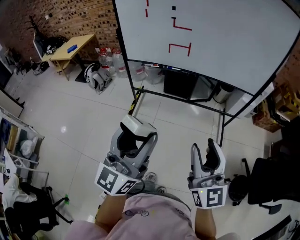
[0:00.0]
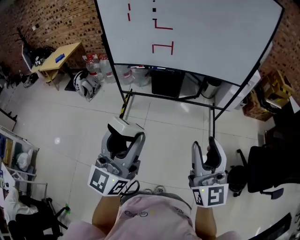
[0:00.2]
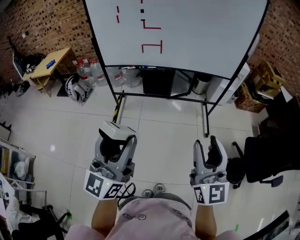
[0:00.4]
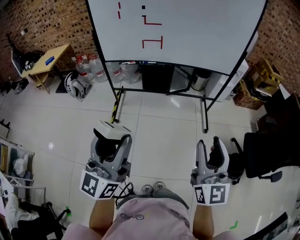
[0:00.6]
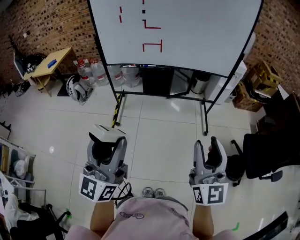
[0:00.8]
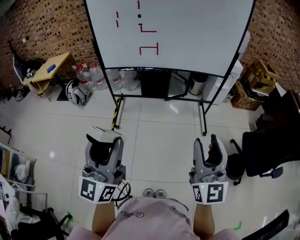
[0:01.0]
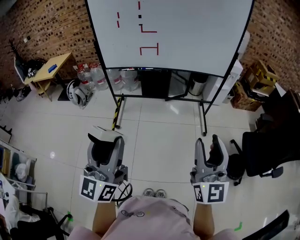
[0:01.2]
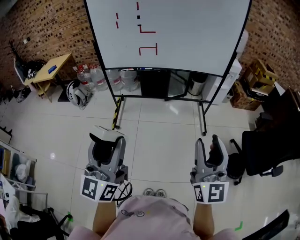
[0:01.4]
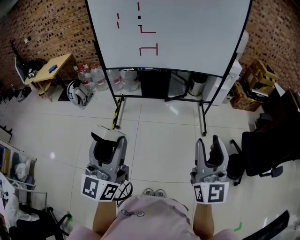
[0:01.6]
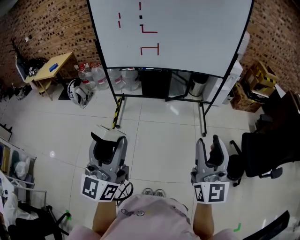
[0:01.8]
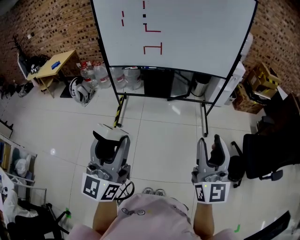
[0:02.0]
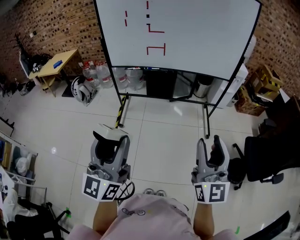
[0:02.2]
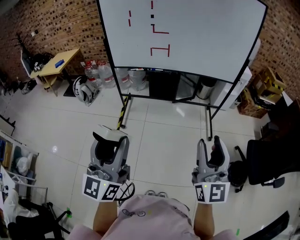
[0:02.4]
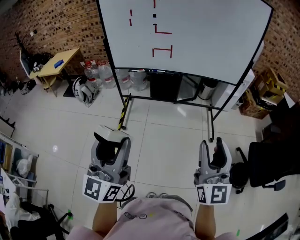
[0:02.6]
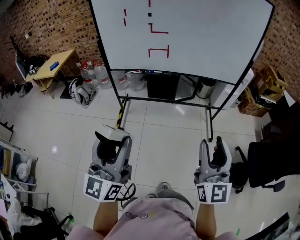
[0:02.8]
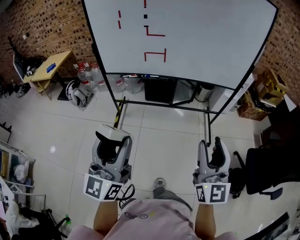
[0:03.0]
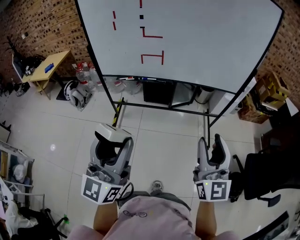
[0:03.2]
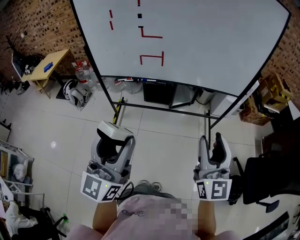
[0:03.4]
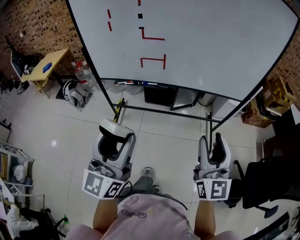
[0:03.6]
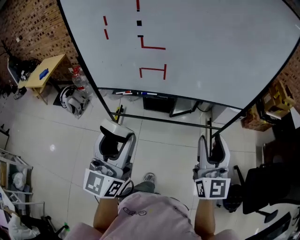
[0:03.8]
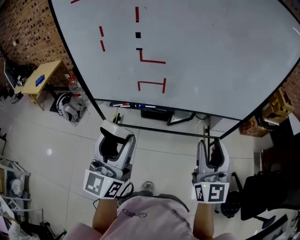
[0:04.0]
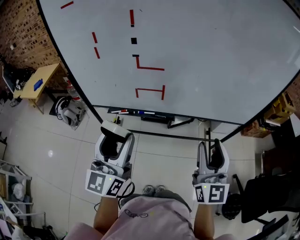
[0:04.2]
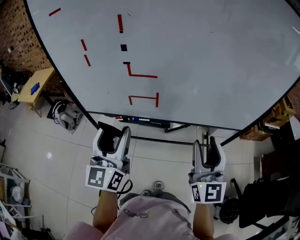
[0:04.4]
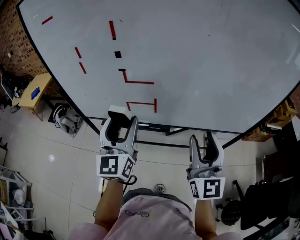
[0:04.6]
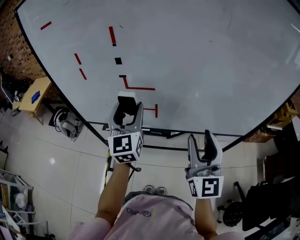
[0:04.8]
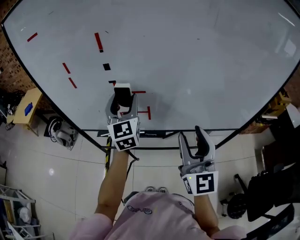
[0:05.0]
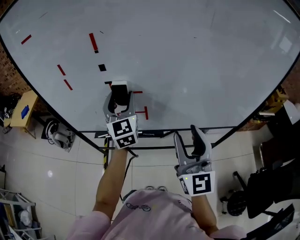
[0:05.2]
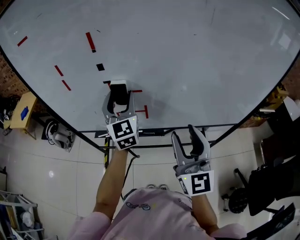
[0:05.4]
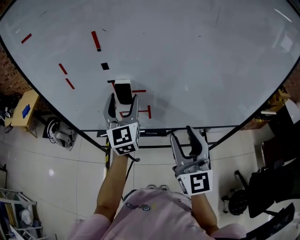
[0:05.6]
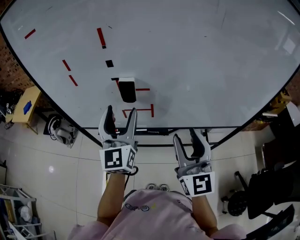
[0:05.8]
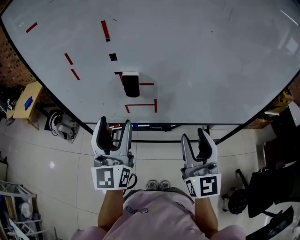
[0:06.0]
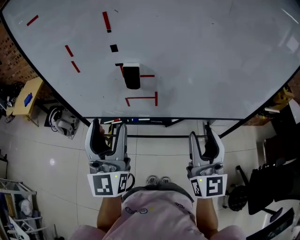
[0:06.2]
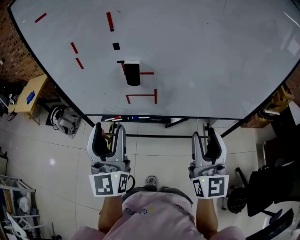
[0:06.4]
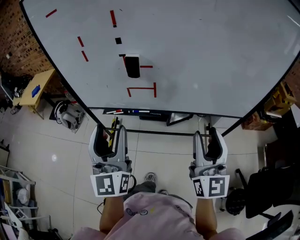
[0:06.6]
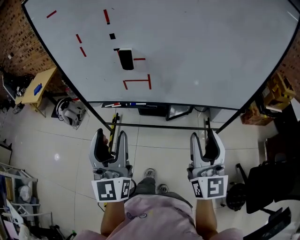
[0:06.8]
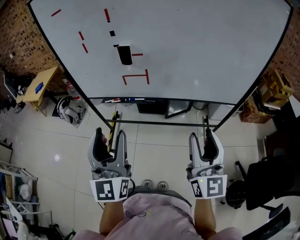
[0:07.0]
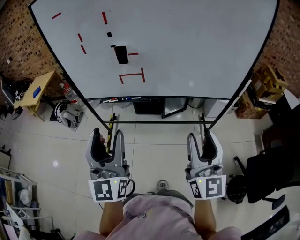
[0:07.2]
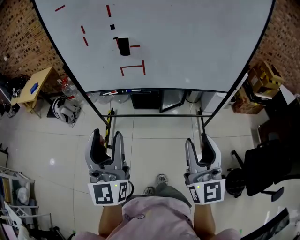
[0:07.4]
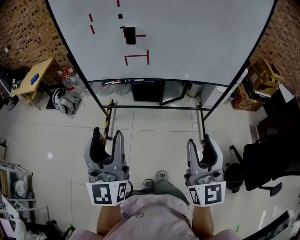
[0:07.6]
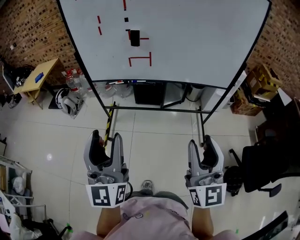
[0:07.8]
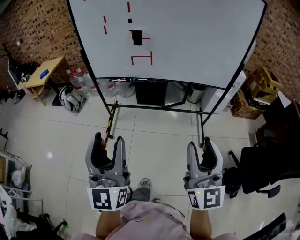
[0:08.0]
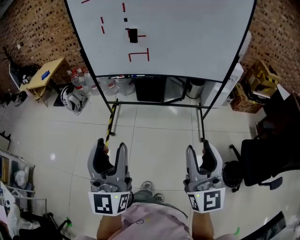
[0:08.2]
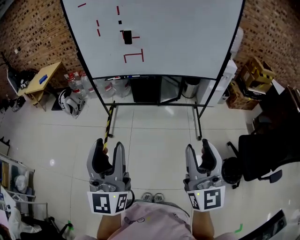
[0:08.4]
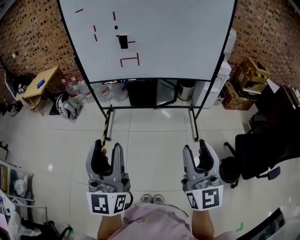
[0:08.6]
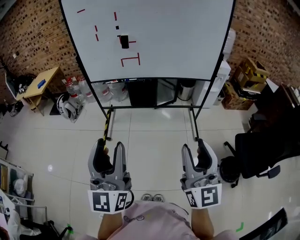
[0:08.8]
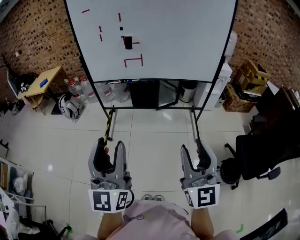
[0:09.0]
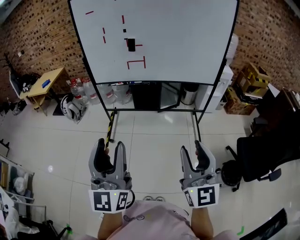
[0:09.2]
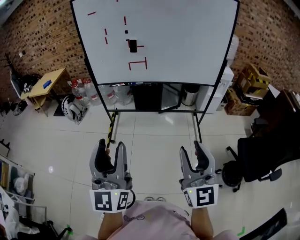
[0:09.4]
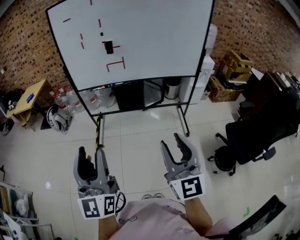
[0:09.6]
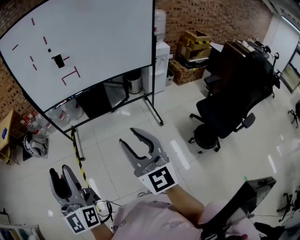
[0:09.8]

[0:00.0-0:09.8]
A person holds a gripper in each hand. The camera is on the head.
0.0 to 1.4 s: The right gripper goes approximately 20 cm backward and to the right. Meanwhile the left gripper travels backward by some 15 cm.
1.4 to 2.8 s: The grippers both shift forward by about 10 cm.
2.8 to 4.2 s: The two grippers travel together, forward, about 40 cm.
4.2 to 5.6 s: The right gripper travels forward by roughly 15 cm; the left gripper is displaced forward by roughly 25 cm, and rotates approximately 20 degrees.
5.6 to 7.0 s: The left gripper moves backward, approximately 40 cm; the right gripper shifts roughly 20 cm backward.
7.0 to 8.4 s: The two grippers go about 35 cm backward.
8.4 to 9.8 s: Both grippers travel together to the left, about 5 cm.

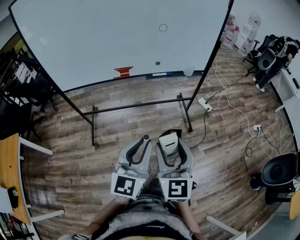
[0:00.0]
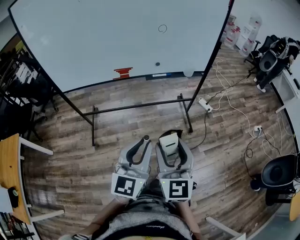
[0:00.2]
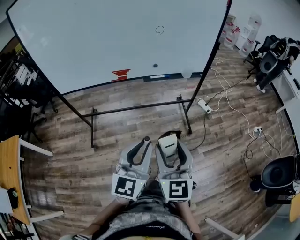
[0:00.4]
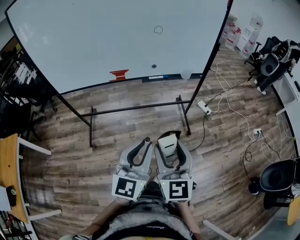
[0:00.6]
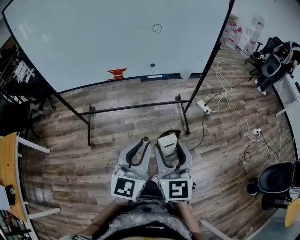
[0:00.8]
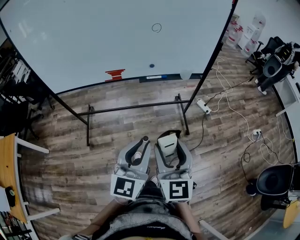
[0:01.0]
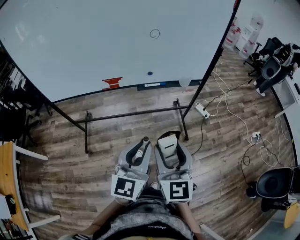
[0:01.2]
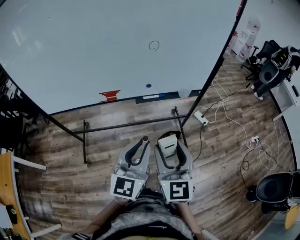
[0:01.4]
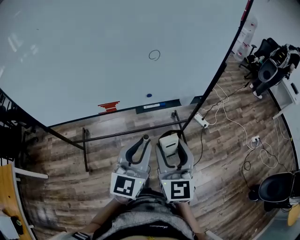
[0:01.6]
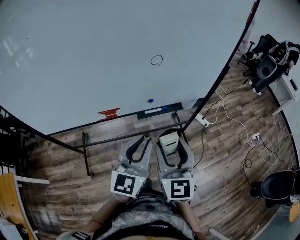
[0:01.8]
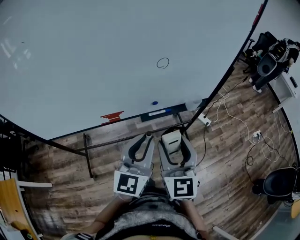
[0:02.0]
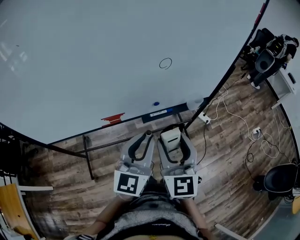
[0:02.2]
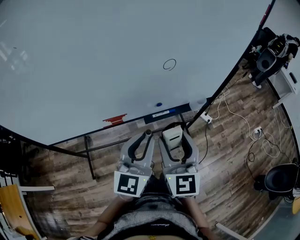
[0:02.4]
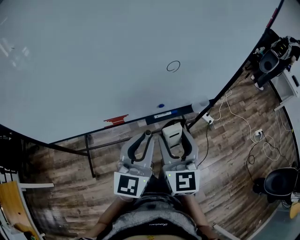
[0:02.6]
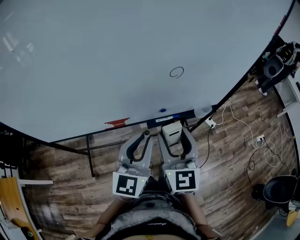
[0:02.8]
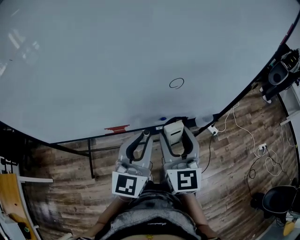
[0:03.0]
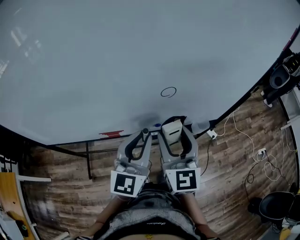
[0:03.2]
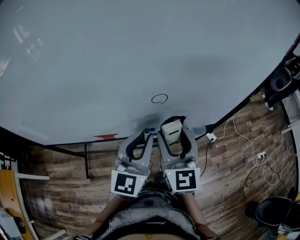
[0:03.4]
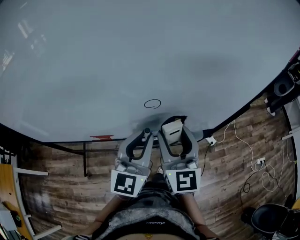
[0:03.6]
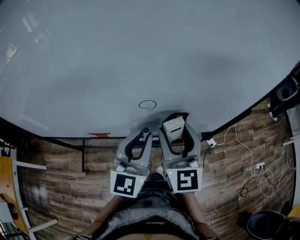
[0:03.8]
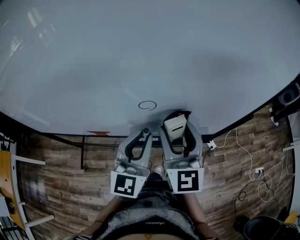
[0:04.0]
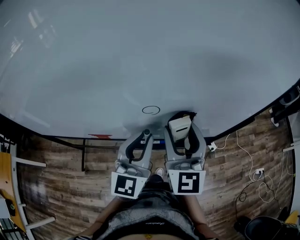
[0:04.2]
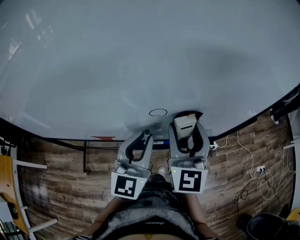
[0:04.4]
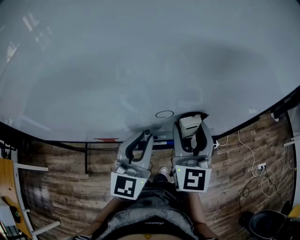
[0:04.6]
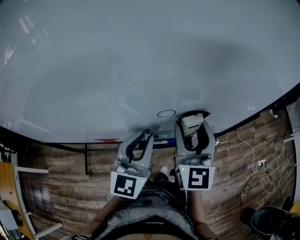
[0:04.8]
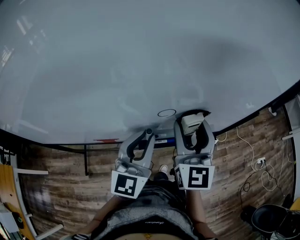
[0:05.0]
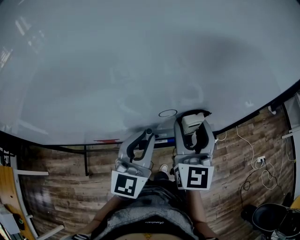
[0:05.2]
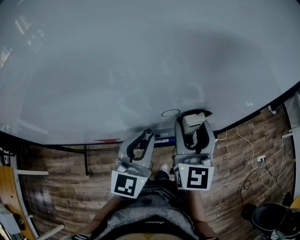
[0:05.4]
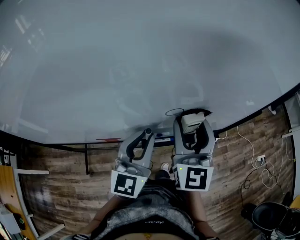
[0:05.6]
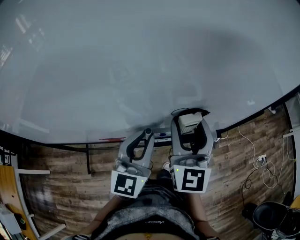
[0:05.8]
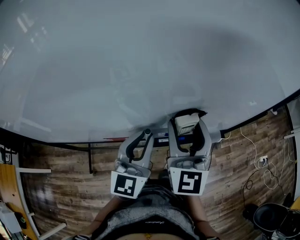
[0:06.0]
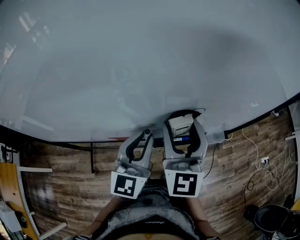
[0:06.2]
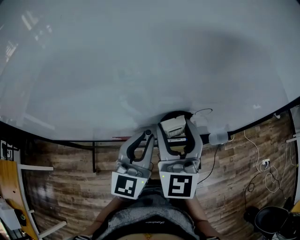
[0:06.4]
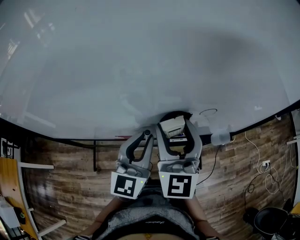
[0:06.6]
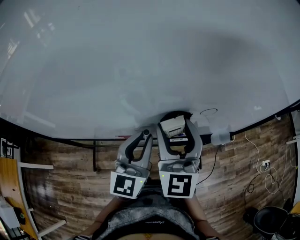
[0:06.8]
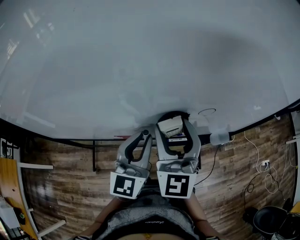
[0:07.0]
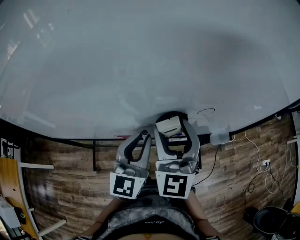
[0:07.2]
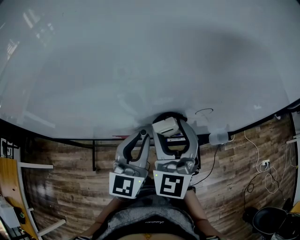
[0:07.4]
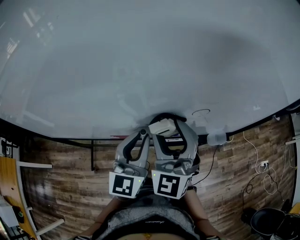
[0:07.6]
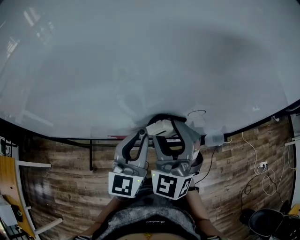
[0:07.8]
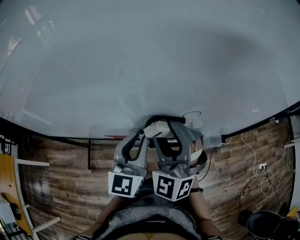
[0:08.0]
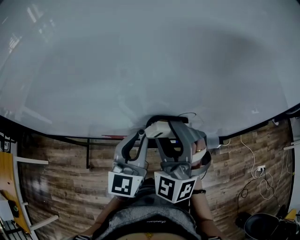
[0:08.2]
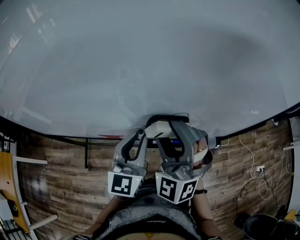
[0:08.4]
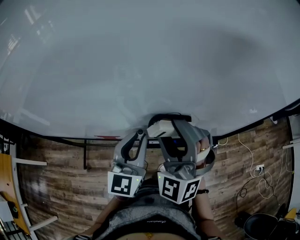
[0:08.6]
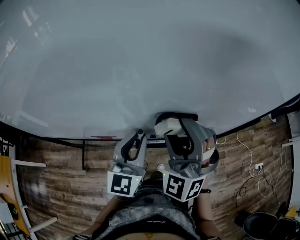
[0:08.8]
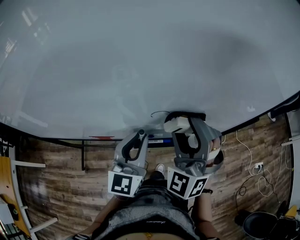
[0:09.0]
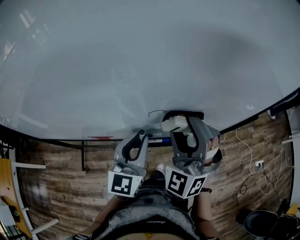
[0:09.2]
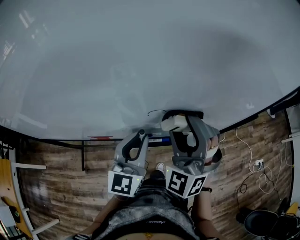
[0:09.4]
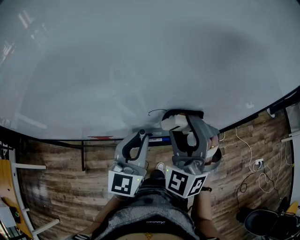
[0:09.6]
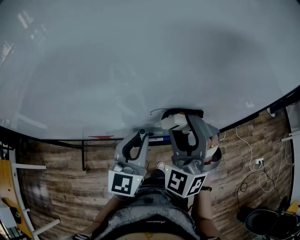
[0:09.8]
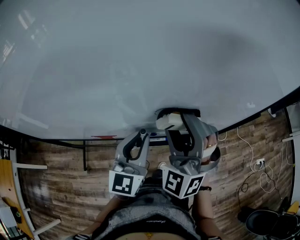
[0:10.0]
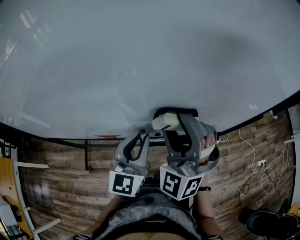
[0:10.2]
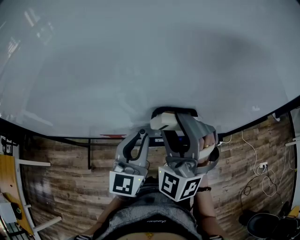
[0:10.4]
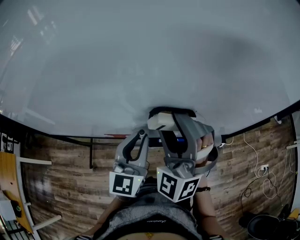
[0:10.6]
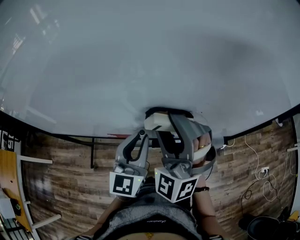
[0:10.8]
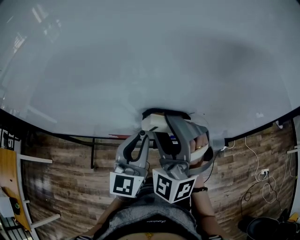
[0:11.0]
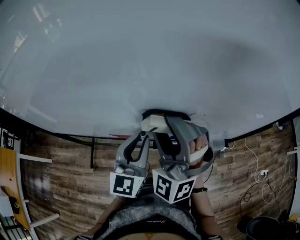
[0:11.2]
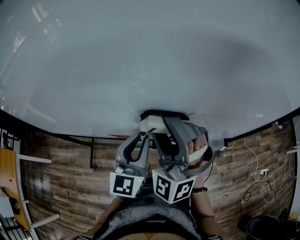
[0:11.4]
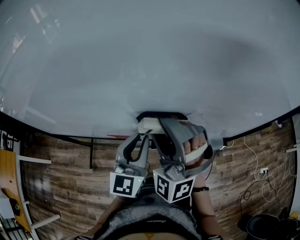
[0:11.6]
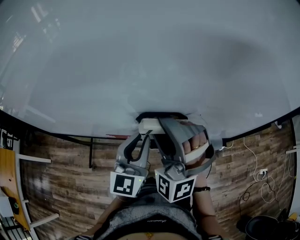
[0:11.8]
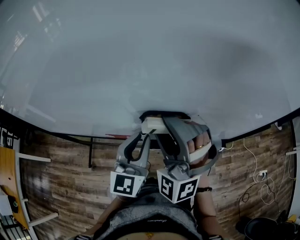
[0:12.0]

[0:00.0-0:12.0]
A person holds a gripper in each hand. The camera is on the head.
0.0 to 1.6 s: The grippers both shift forward by approximately 25 cm.
1.6 to 3.0 s: The left gripper shifts approximately 20 cm forward and to the left. Meanwhile the right gripper heads forward, covering approximately 20 cm.
3.0 to 4.4 s: Both grippers move forward and to the right, some 15 cm.
4.4 to 6.0 s: The two grippers go approximately 10 cm to the left.
6.0 to 7.6 s: The right gripper moves to the left, roughly 10 cm, and changes its angle by roughly 20 degrees.
7.6 to 9.0 s: Both grippers move to the right, approximately 10 cm. The right gripper swivels approximately 30 degrees.
9.0 to 10.4 s: The right gripper travels to the left by about 5 cm.
10.4 to 12.0 s: The right gripper travels to the left by approximately 5 cm.

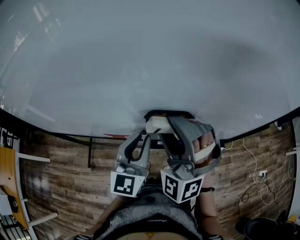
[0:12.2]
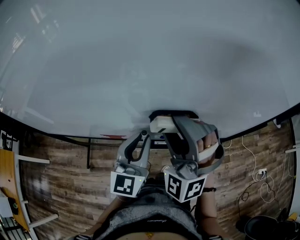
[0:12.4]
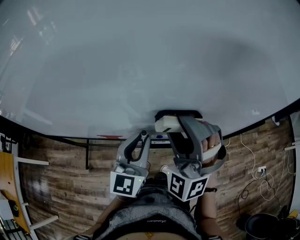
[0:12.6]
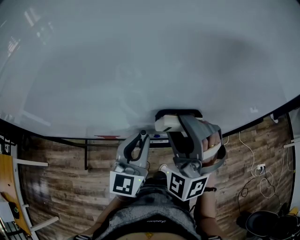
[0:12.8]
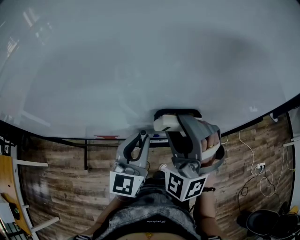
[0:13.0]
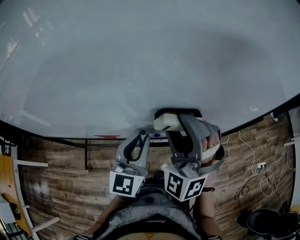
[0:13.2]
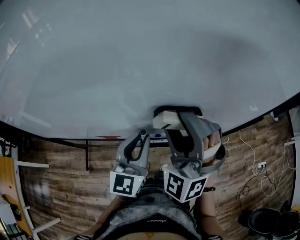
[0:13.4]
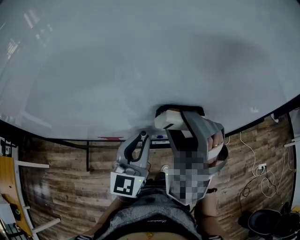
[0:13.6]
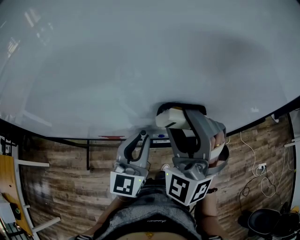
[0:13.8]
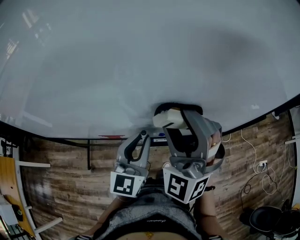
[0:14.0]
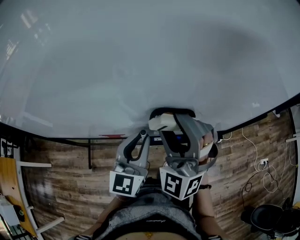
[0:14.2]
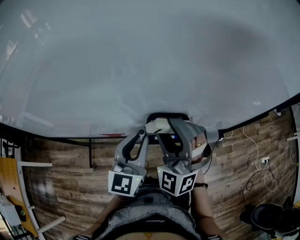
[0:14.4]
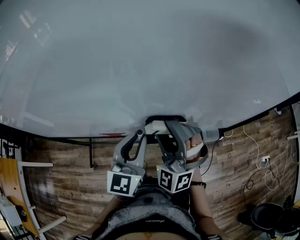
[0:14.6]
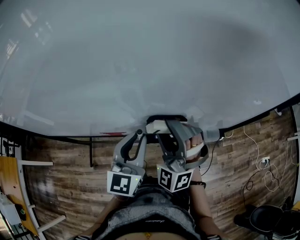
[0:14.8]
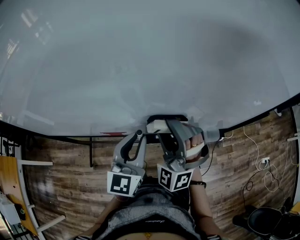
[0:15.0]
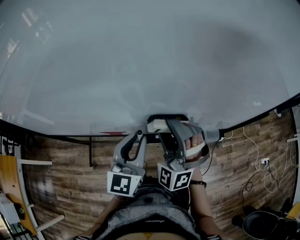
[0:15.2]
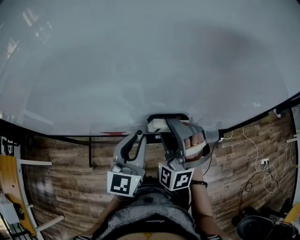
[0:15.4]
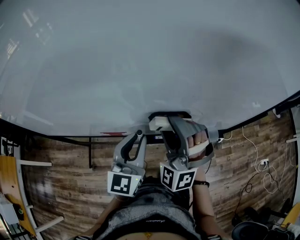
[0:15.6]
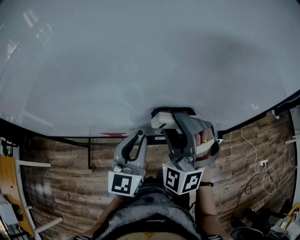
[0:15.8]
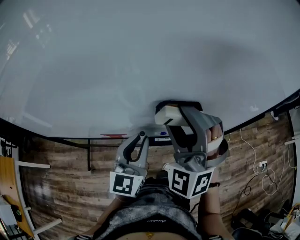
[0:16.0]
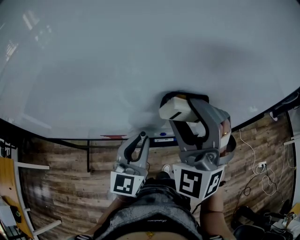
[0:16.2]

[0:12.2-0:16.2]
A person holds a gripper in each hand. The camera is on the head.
12.2 to 13.6 s: The right gripper shifts about 5 cm to the right.
13.6 to 14.8 s: The right gripper goes about 10 cm downward.
14.8 to 16.2 s: The right gripper shifts roughly 15 cm upward.
